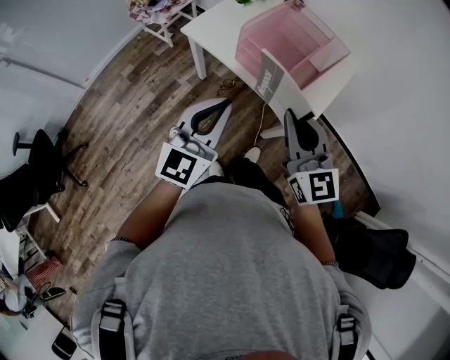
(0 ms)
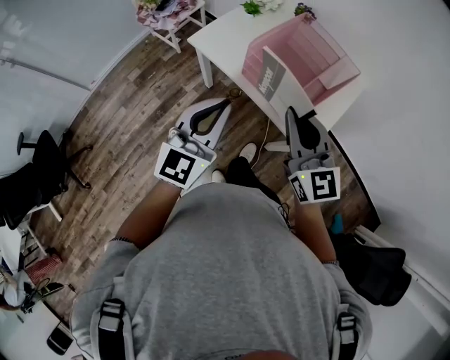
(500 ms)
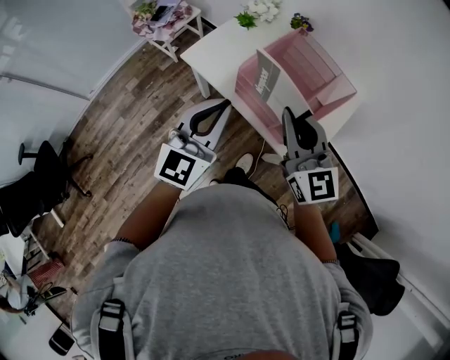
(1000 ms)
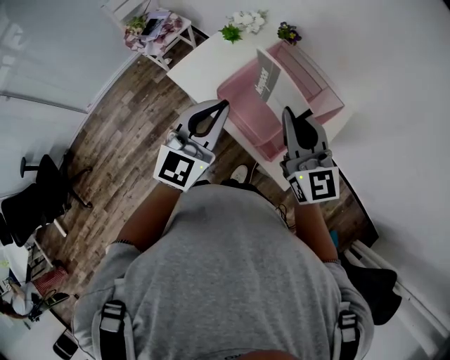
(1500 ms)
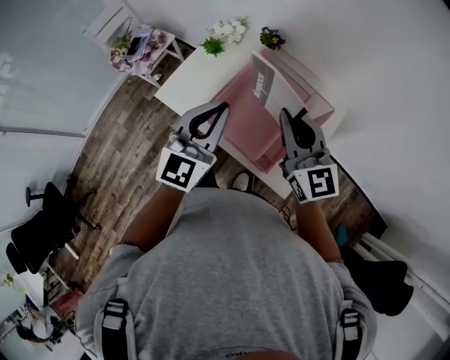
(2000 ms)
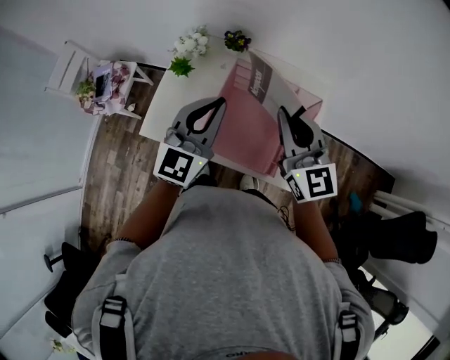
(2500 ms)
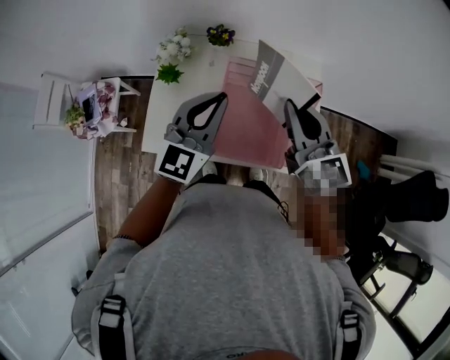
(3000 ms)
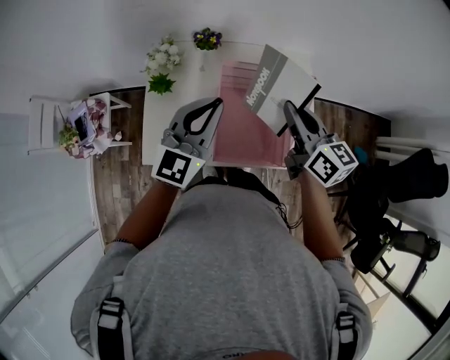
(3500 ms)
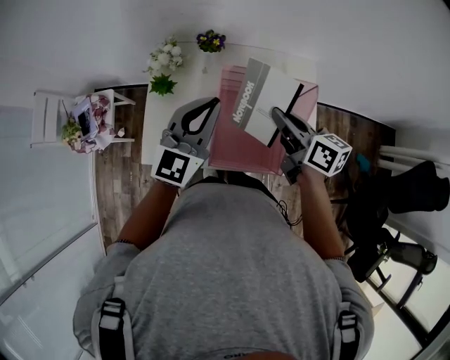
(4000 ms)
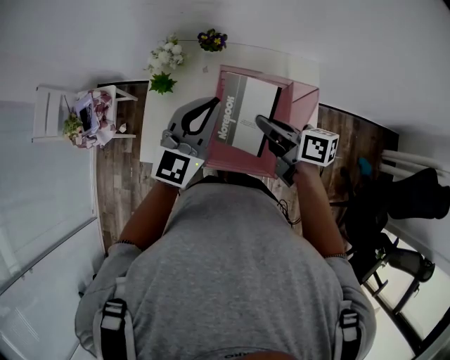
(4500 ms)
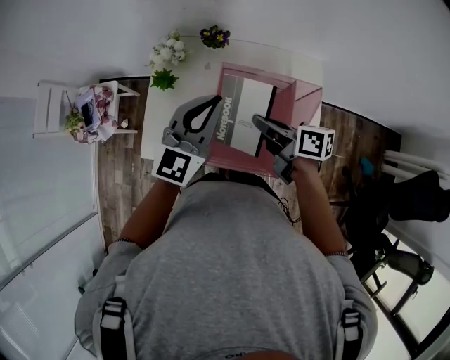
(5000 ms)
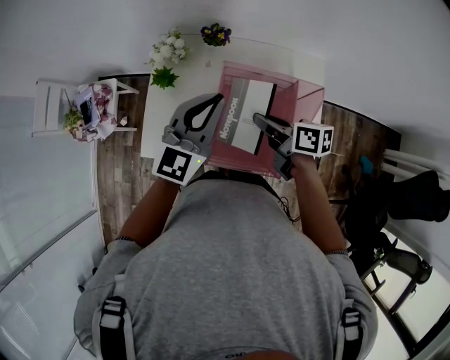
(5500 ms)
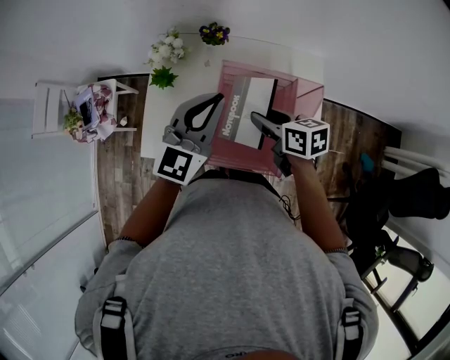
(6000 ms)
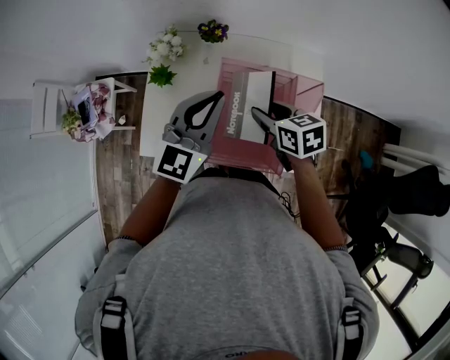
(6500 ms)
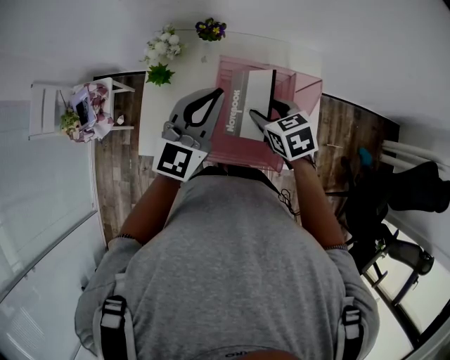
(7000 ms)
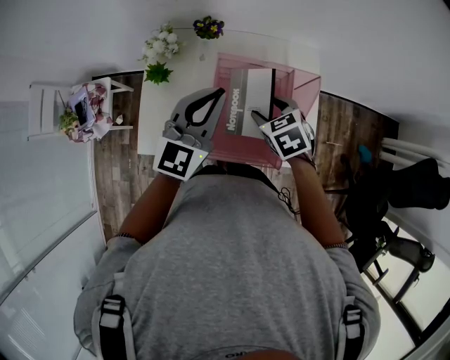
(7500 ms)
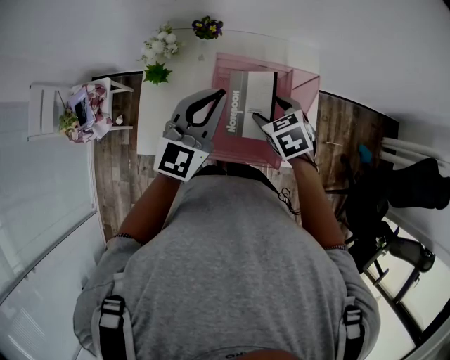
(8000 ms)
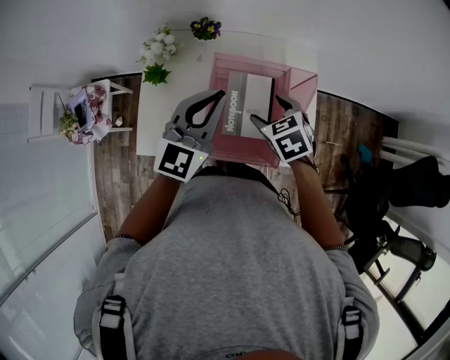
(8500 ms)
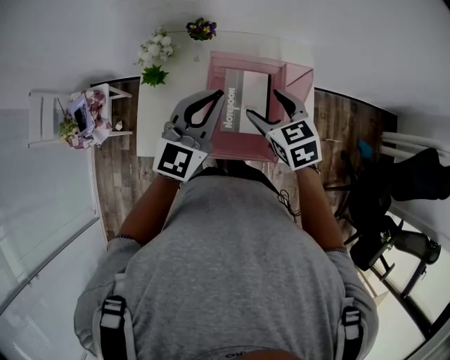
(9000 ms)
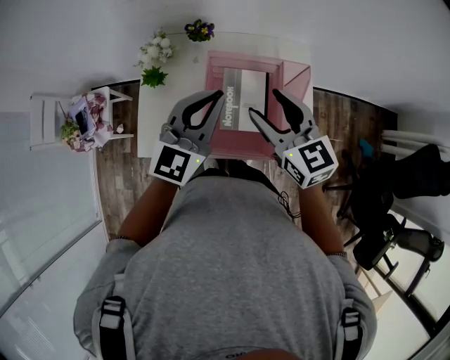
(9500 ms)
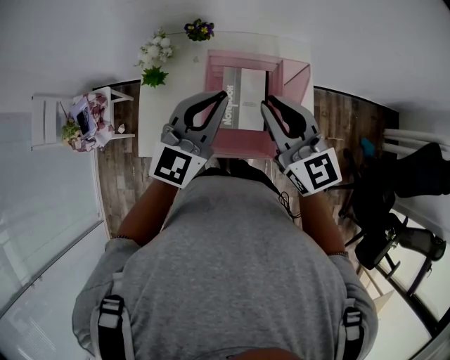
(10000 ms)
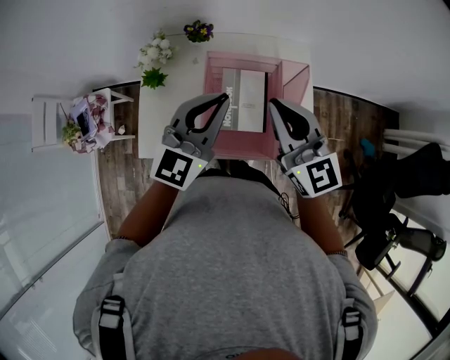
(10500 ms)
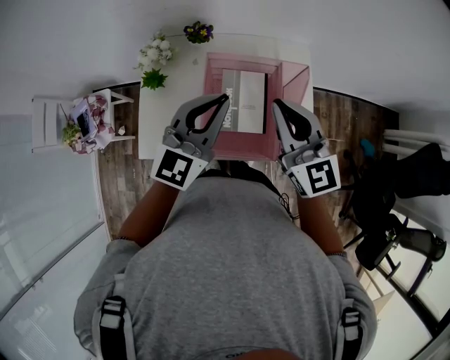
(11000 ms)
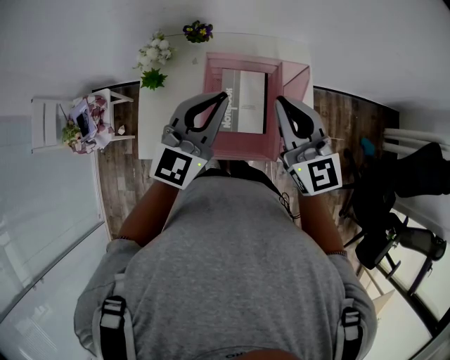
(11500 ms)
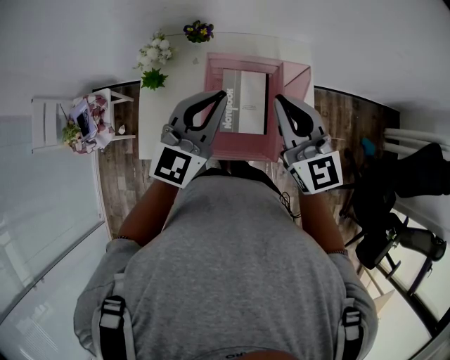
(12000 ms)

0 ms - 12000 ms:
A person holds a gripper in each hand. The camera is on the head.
0 ms - 2000 ms: The grippers both shift forward by roughly 30 cm.
2000 ms - 4000 ms: The left gripper moves some 15 cm, and turns by approximately 30 degrees. Meanwhile the right gripper moves downward, some 10 cm, and rolls clockwise, seen from behind, by approximately 50 degrees.
4000 ms - 6000 ms: The right gripper goes about 5 cm downward, rotates about 20 degrees, and opens its fingers.
6000 ms - 8000 ms: The right gripper changes its angle by about 40 degrees, and opens up.
8000 ms - 10000 ms: The right gripper moves upward, roughly 15 cm, angles its fingers upward, by roughly 50 degrees, and closes up. The left gripper shifts by about 5 cm.
10000 ms - 12000 ms: The grippers stay close to where they were, moving slightly.

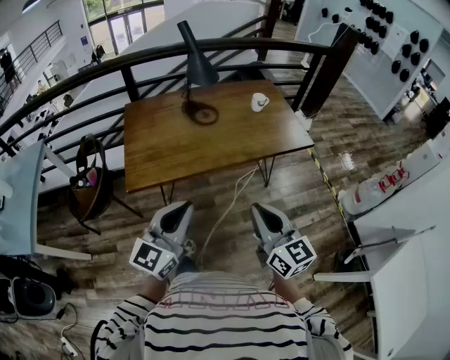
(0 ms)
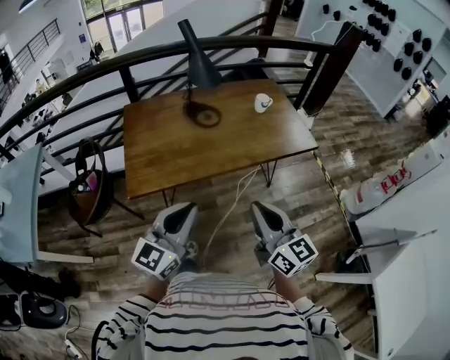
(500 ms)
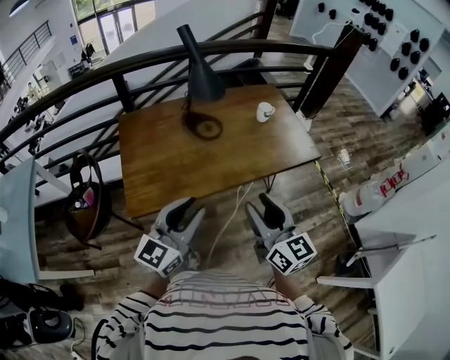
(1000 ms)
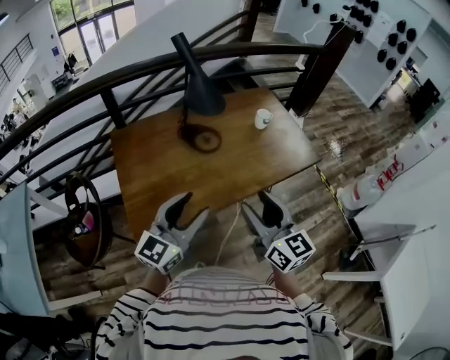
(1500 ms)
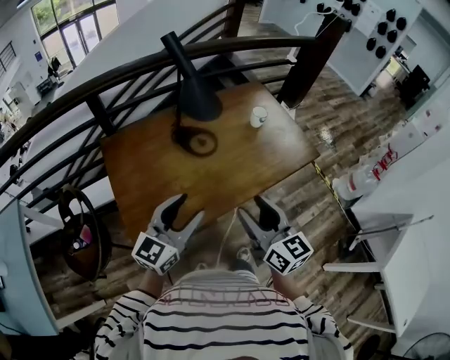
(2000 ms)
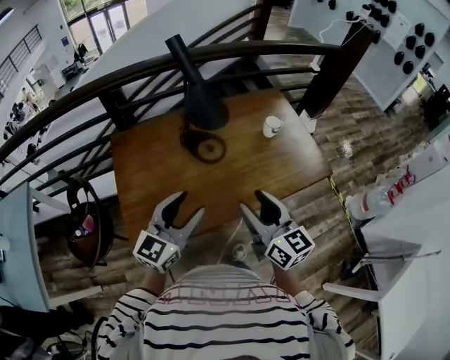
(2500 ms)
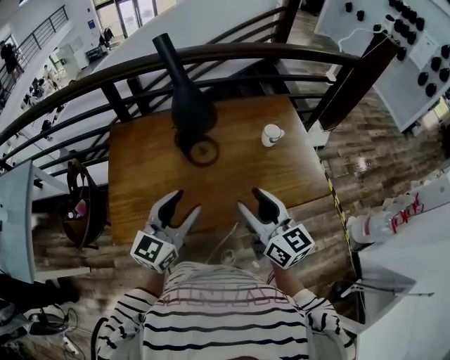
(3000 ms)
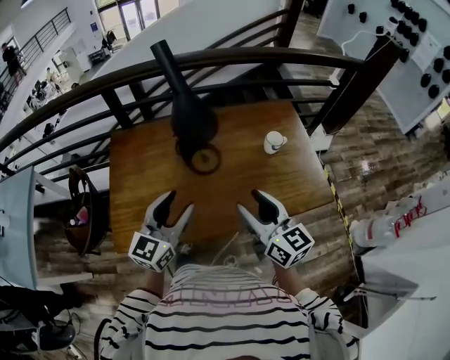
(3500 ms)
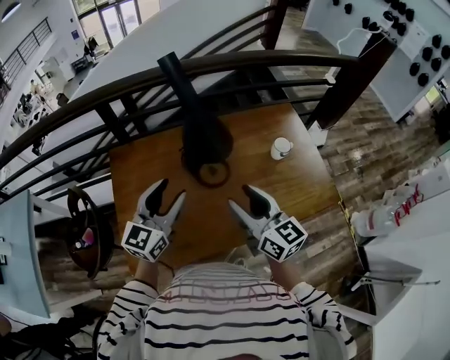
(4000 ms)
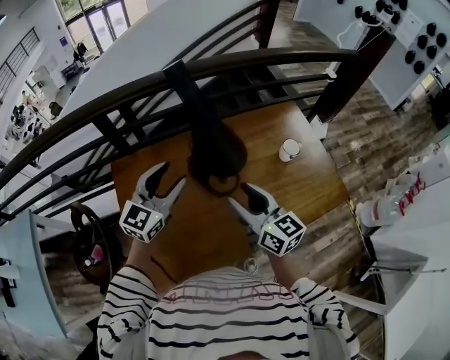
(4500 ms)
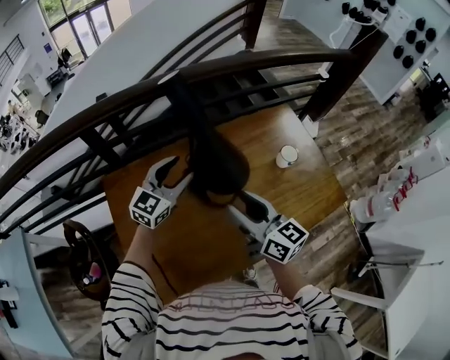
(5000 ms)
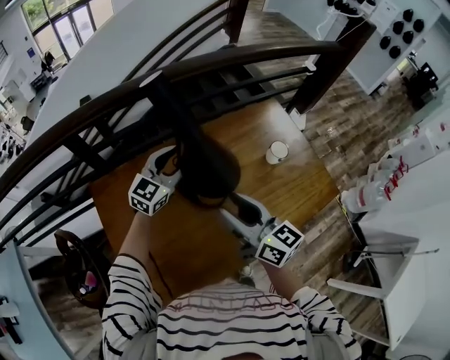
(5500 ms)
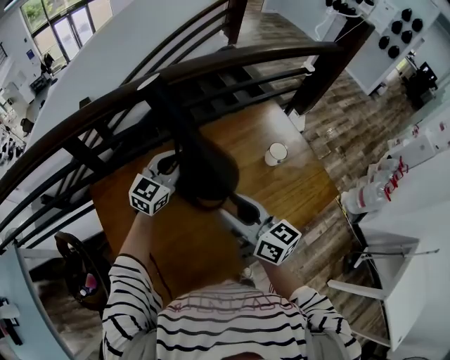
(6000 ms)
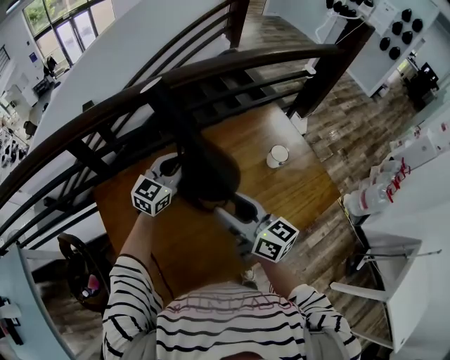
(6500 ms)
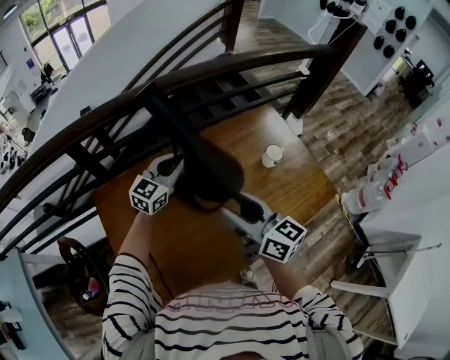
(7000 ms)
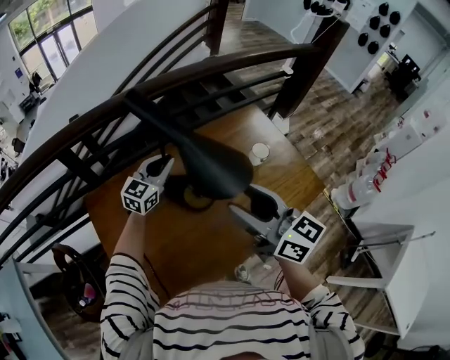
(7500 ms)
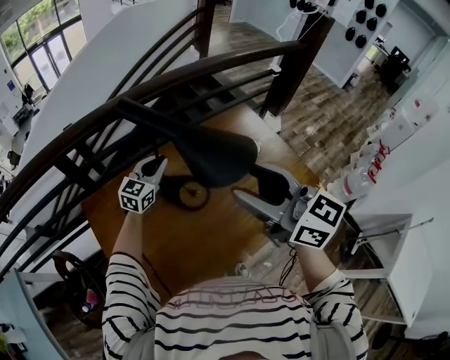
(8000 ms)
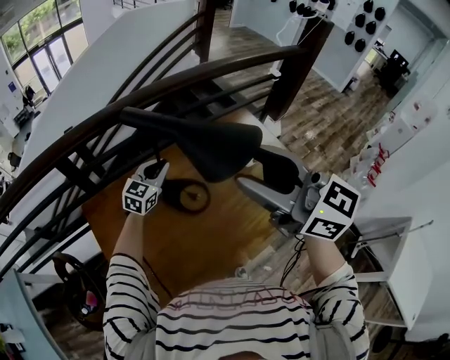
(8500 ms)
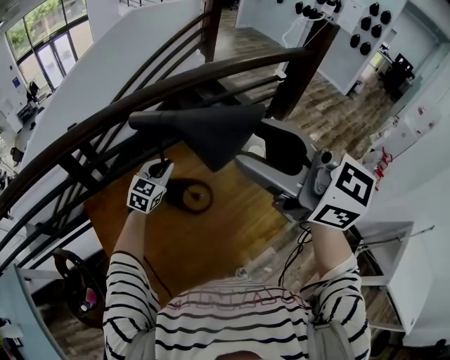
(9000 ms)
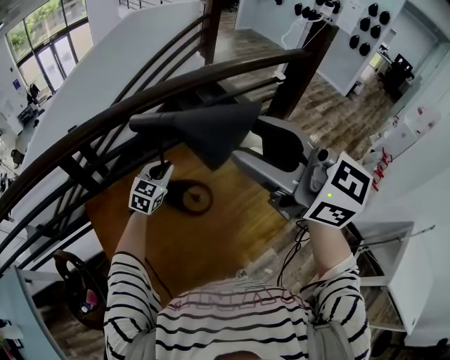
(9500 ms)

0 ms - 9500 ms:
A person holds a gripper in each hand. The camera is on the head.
0 ms - 2000 ms: The two grippers go about 35 cm forward and to the left. The right gripper opens up, while the left gripper opens.
2000 ms - 4000 ms: Both grippers travel together forward, approximately 25 cm. The left gripper changes its angle by about 20 degrees.
4000 ms - 5500 ms: The right gripper goes roughly 15 cm forward and to the left; the left gripper goes roughly 25 cm forward, and swivels about 30 degrees.
5500 ms - 7500 ms: The right gripper goes about 10 cm upward and to the right; the left gripper closes its fingers.
7500 ms - 9500 ms: The right gripper travels upward by approximately 20 cm, and changes its angle by approximately 20 degrees.

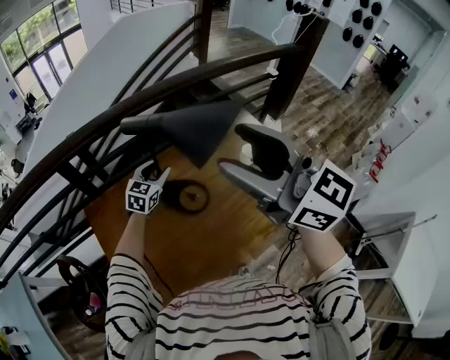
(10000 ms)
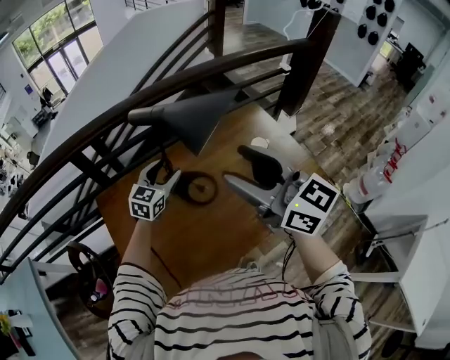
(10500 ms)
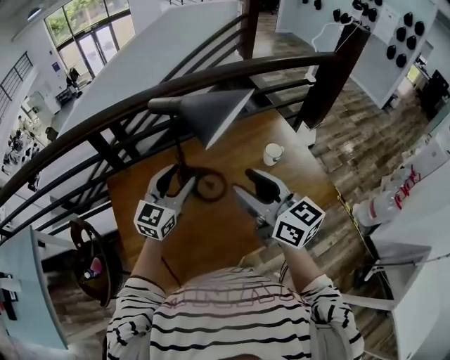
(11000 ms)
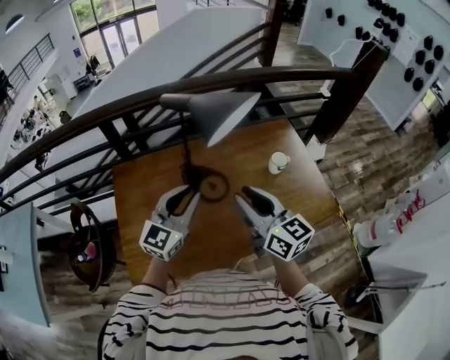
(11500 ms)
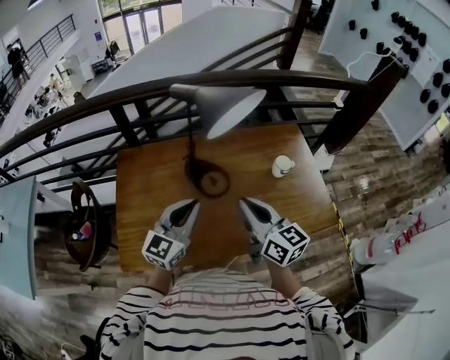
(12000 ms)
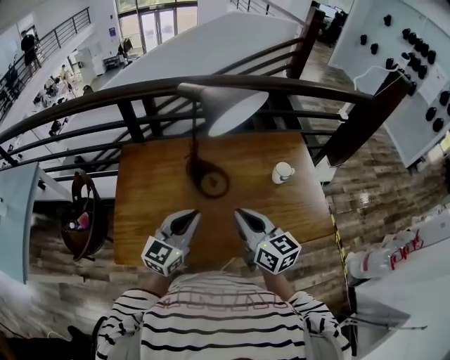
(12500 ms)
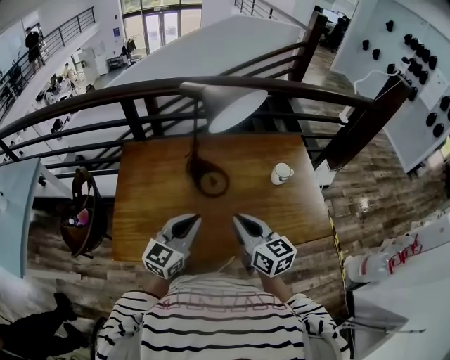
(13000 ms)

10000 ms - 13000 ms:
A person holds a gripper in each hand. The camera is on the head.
10000 ms - 11500 ms: The right gripper is displaced downward by roughly 20 cm, changes its angle by approximately 20 degrees, and closes its fingers, while the left gripper moves backward and upward, about 25 cm, turns by roughly 20 degrees, and opens and closes again.
11500 ms - 13000 ms: The right gripper shifts about 10 cm downward and backward, and closes up. Meanwhile the left gripper shifts some 10 cm backward and downward.

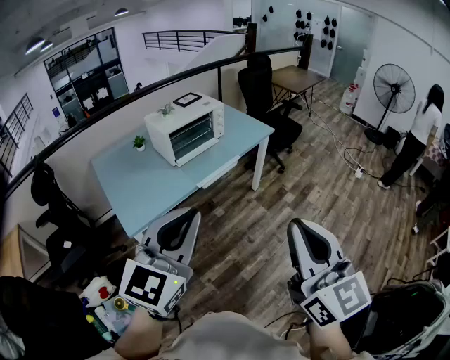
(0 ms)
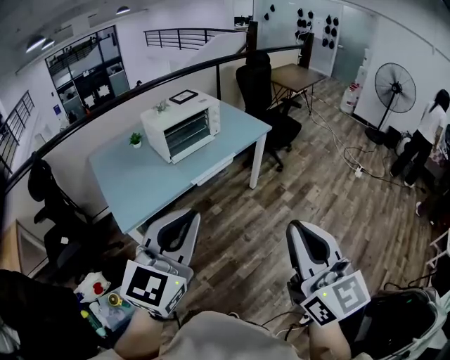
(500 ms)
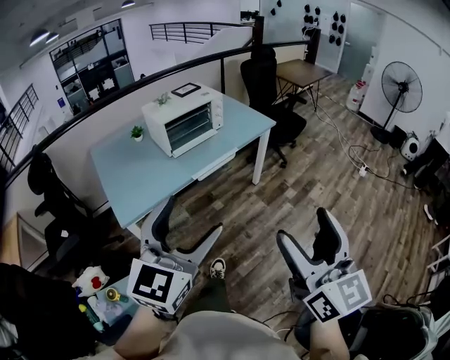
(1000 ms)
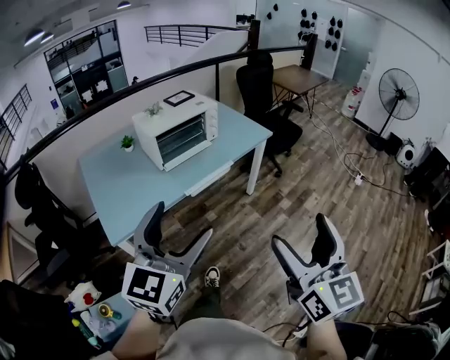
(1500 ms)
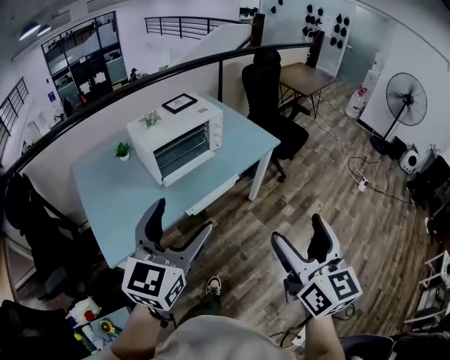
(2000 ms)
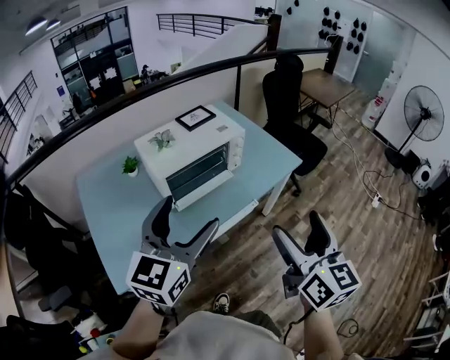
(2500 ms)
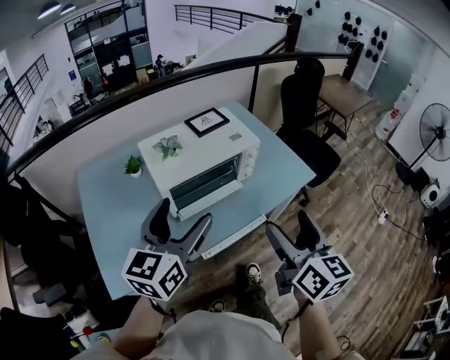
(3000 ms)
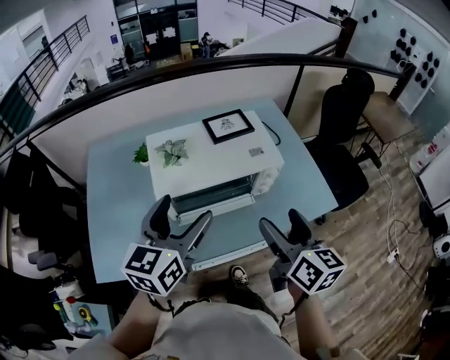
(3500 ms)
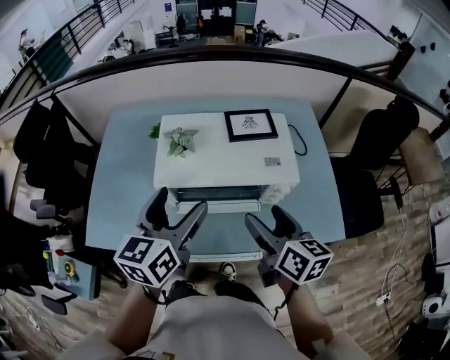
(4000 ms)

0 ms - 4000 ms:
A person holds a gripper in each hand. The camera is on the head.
0 ms - 2000 ms: Both grippers travel together forward, approximately 25 cm. The left gripper opens its fingers. Meanwhile the right gripper opens up.
2000 ms - 4000 ms: The left gripper changes place by about 40 cm, and rotates some 50 degrees; the right gripper ends up about 60 cm from where it was, and swivels about 50 degrees.
